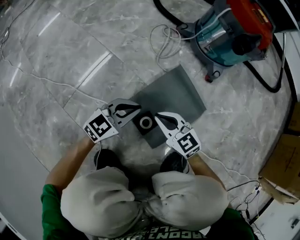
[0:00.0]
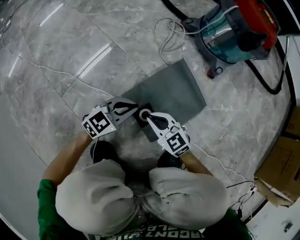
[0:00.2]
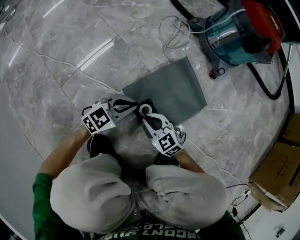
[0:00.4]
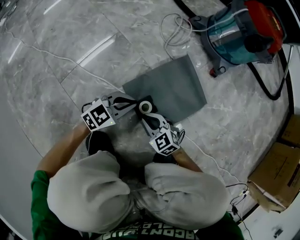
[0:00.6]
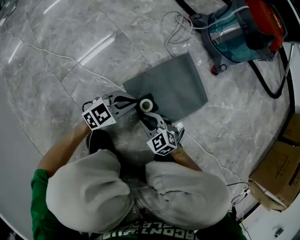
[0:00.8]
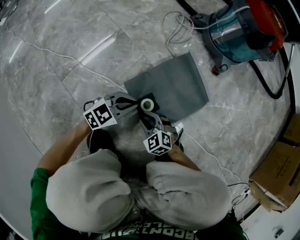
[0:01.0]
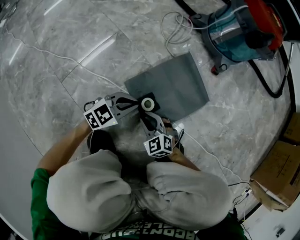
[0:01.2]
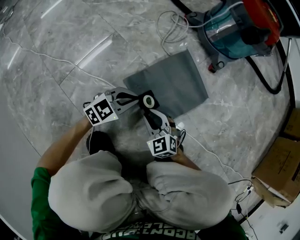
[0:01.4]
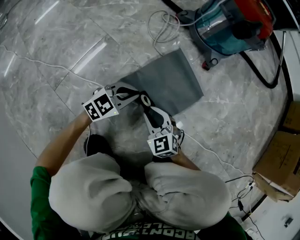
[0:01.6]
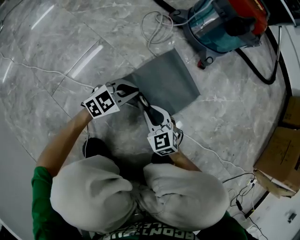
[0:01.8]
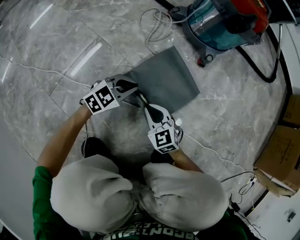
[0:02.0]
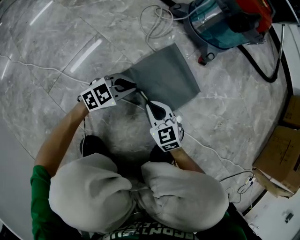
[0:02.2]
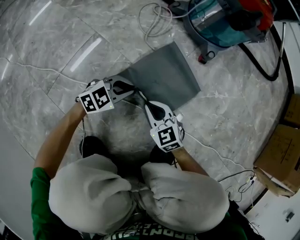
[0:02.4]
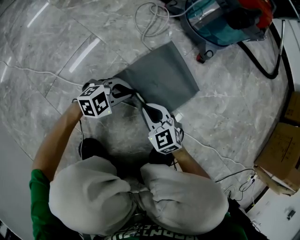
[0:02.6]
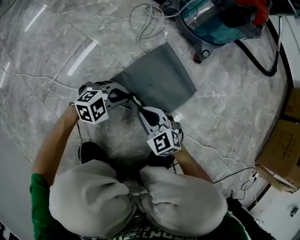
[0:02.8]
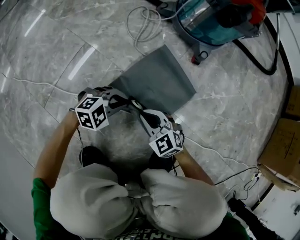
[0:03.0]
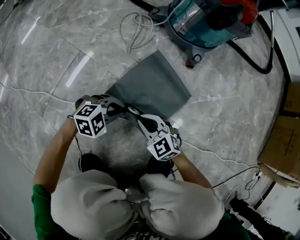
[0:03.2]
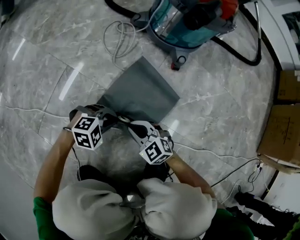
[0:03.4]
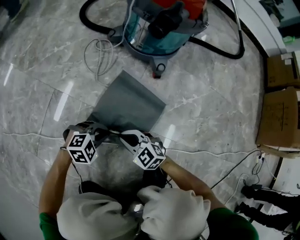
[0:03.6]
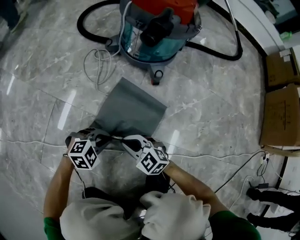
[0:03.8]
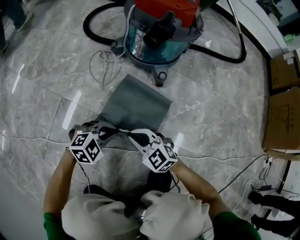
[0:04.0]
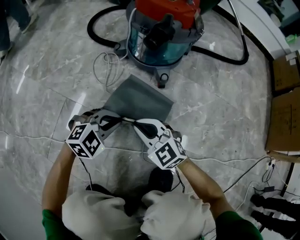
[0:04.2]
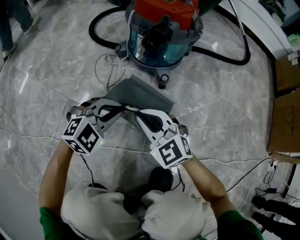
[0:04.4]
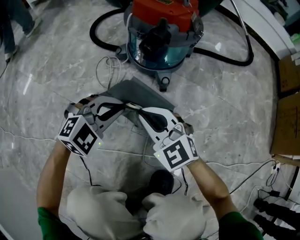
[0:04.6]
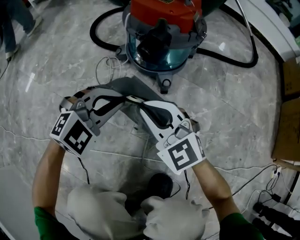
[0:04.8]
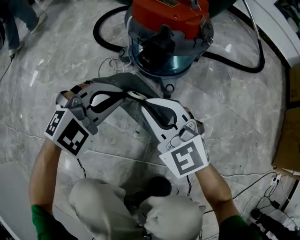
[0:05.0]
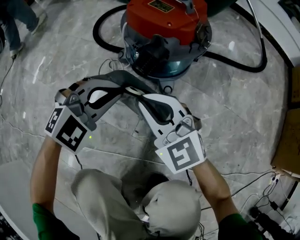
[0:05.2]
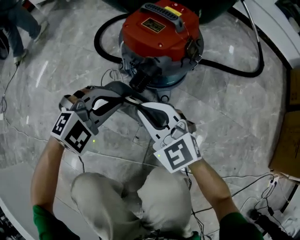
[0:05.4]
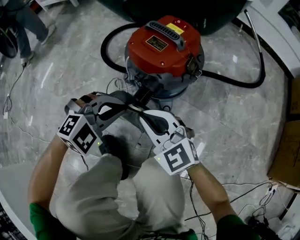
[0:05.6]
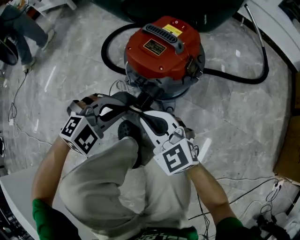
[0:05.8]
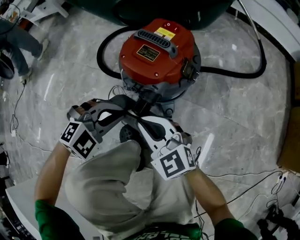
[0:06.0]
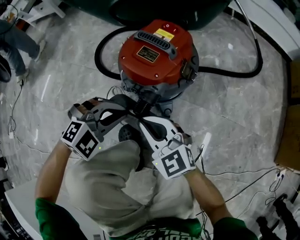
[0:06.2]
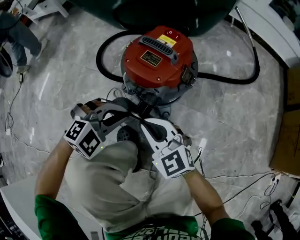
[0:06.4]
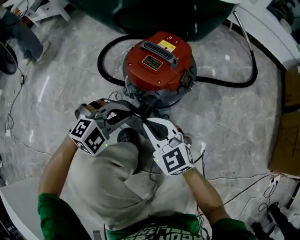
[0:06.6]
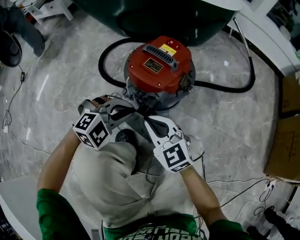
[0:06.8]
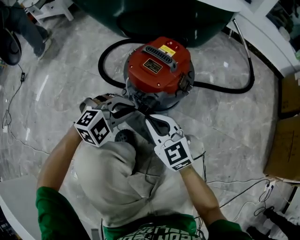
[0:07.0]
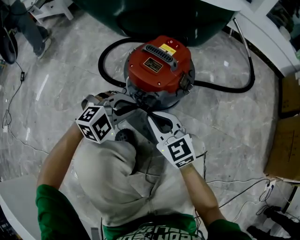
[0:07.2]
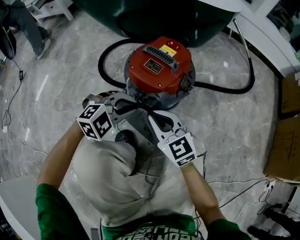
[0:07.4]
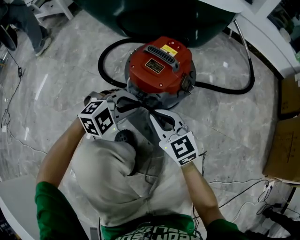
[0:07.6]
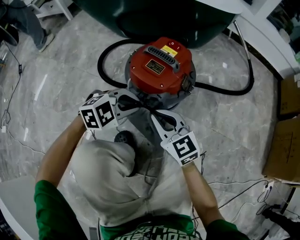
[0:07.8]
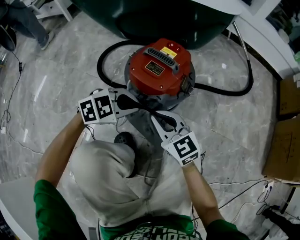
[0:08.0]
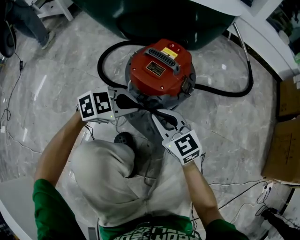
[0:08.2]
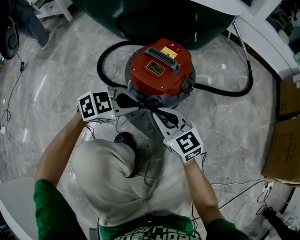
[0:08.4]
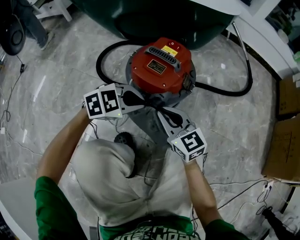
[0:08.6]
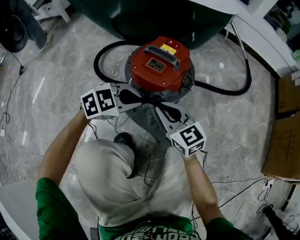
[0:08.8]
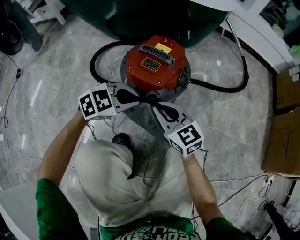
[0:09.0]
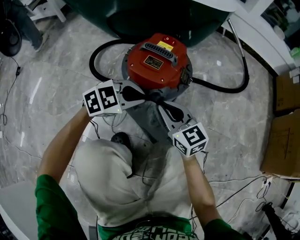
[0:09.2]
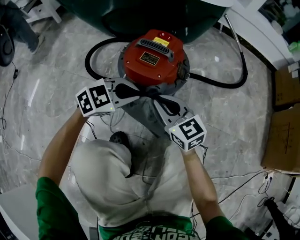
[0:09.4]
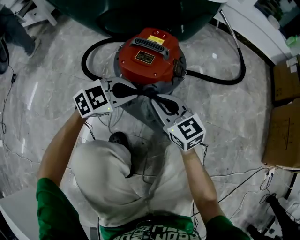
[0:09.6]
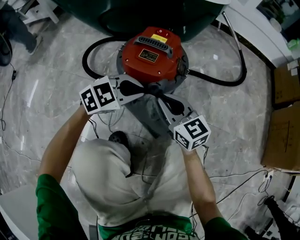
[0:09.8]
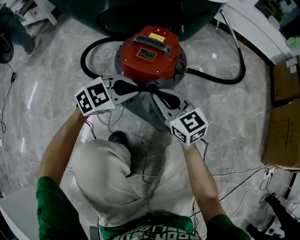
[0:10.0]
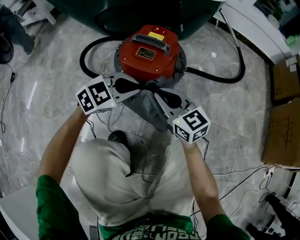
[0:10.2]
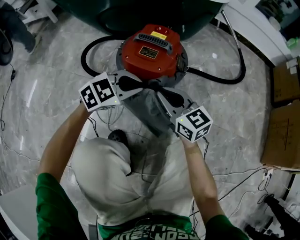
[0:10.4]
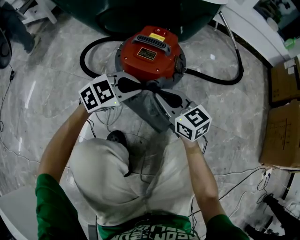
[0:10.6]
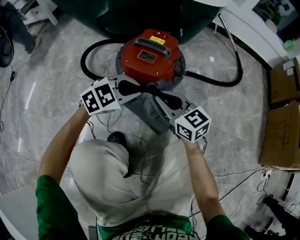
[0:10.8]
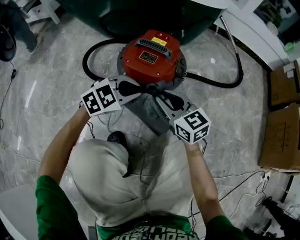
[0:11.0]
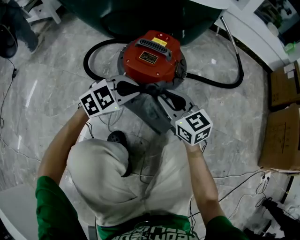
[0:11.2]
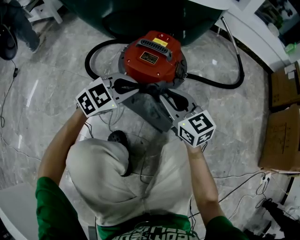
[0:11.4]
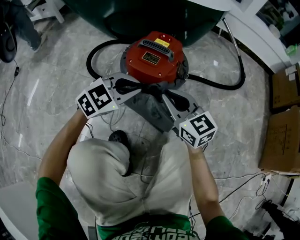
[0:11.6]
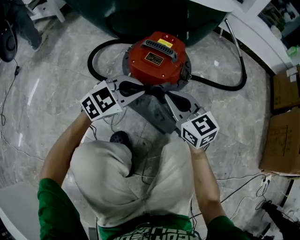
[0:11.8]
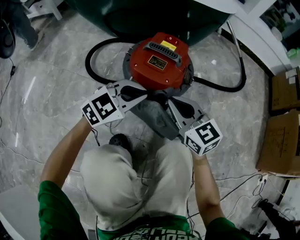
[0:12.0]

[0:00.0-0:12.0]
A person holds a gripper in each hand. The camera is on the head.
0:00.0 to 0:01.6: Both grippers move downward, about 5 cm. The right gripper changes its angle by roughly 20 degrees.
0:01.6 to 0:03.0: The left gripper turns by some 30 degrees.
0:03.0 to 0:04.4: The grippers both shift upward by about 15 cm. The right gripper rotates roughly 20 degrees.
0:04.4 to 0:06.0: Both grippers travel together forward and upward, roughly 20 cm.
0:06.0 to 0:07.6: There are only small adjustments of the grippers.
0:09.0 to 0:12.0: The grippers make only small movements.

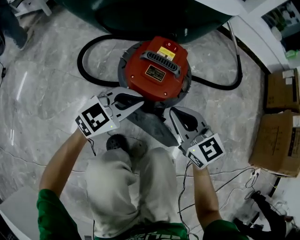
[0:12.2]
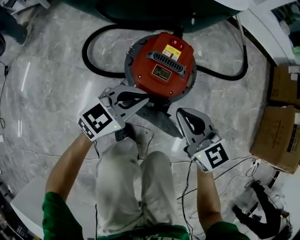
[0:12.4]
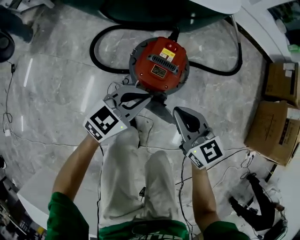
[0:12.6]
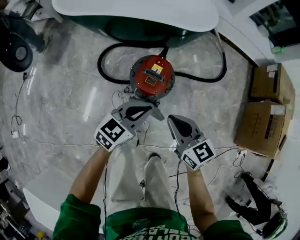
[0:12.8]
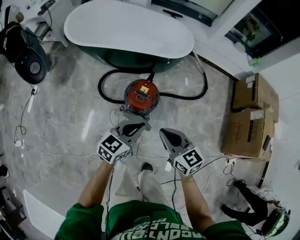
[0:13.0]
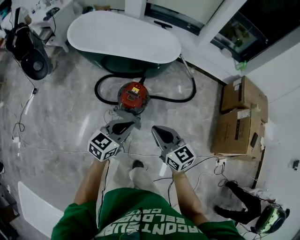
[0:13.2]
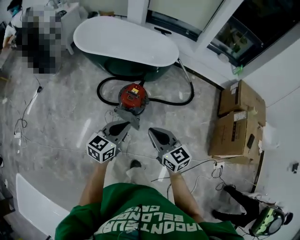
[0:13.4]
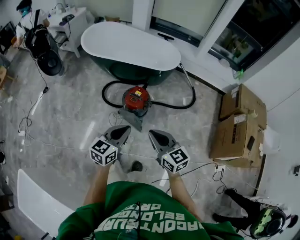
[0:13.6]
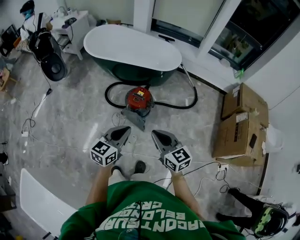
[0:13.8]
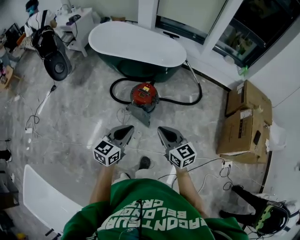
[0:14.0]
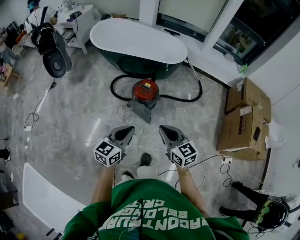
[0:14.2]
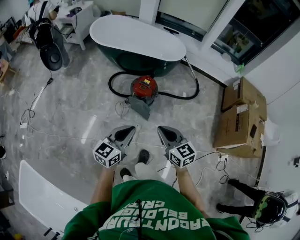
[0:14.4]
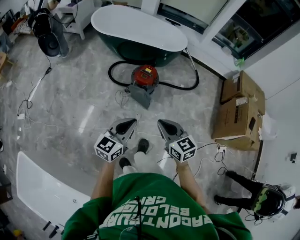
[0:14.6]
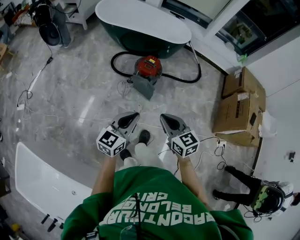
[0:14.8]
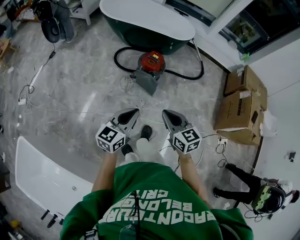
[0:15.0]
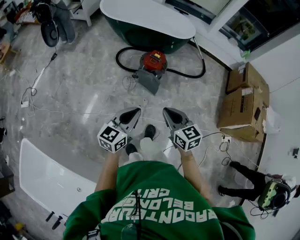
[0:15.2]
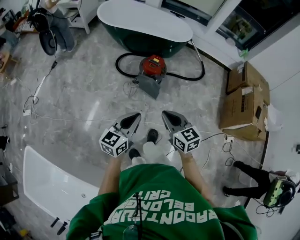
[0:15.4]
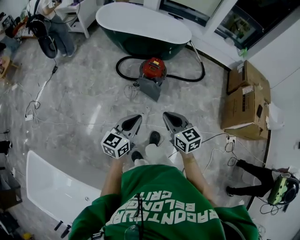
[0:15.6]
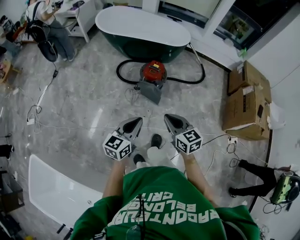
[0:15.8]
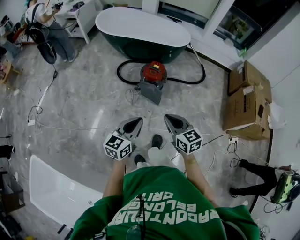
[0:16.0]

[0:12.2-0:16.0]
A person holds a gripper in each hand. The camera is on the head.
0:12.2 to 0:13.4: The two grippers go about 70 cm upward and backward. The left gripper changes its angle by about 40 degrees.
0:13.4 to 0:14.8: Both grippers travel together backward and to the left, about 25 cm.
0:14.8 to 0:16.0: There are only small adjustments of the grippers.

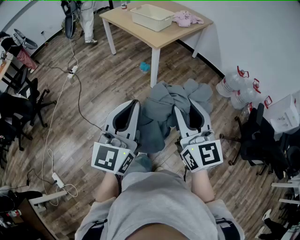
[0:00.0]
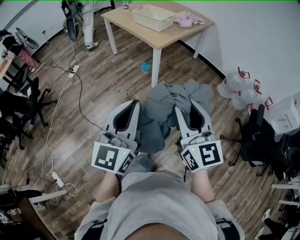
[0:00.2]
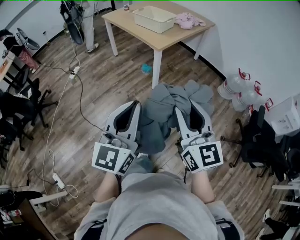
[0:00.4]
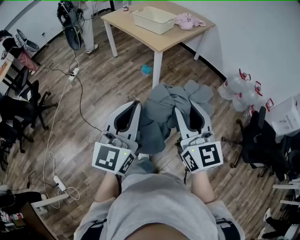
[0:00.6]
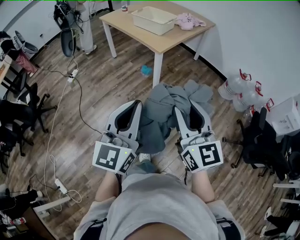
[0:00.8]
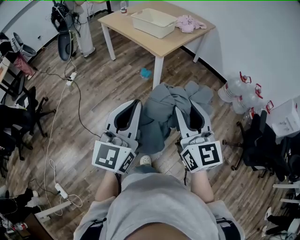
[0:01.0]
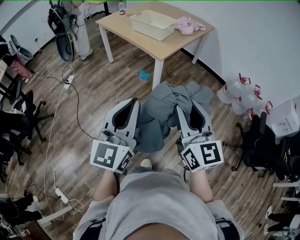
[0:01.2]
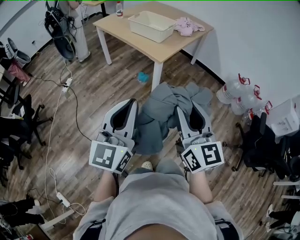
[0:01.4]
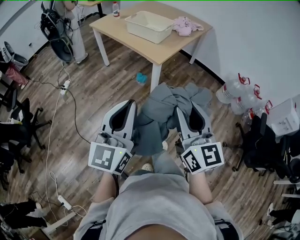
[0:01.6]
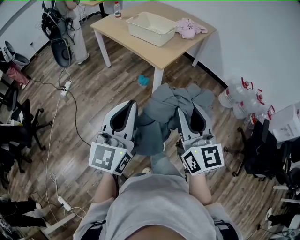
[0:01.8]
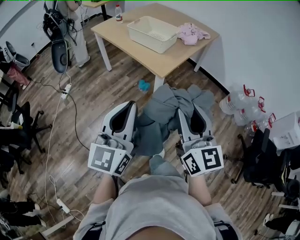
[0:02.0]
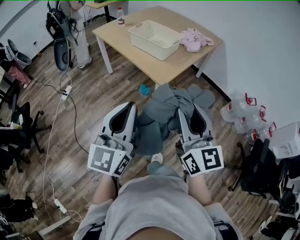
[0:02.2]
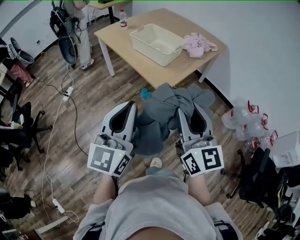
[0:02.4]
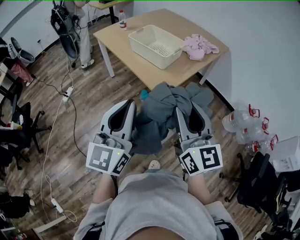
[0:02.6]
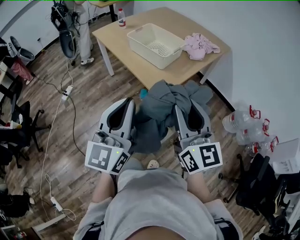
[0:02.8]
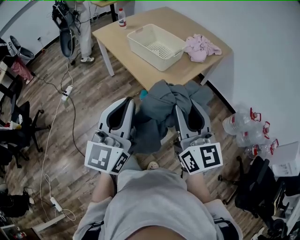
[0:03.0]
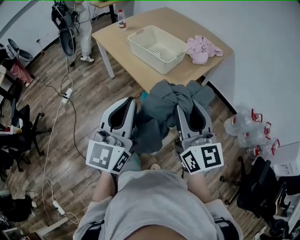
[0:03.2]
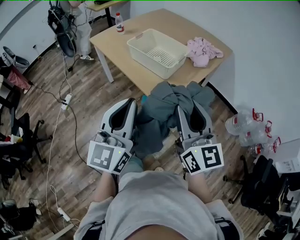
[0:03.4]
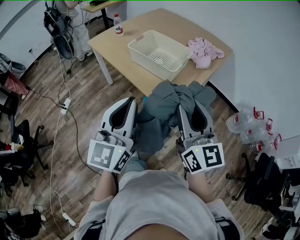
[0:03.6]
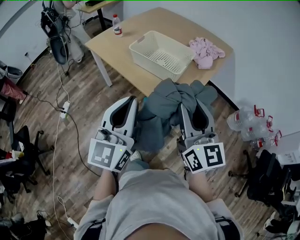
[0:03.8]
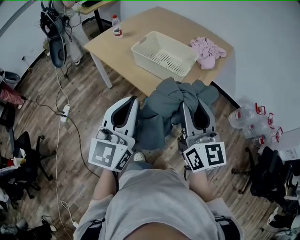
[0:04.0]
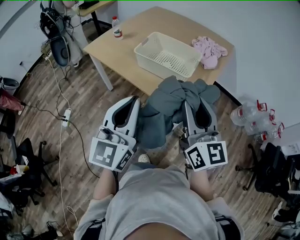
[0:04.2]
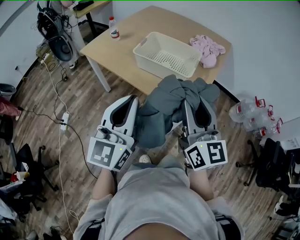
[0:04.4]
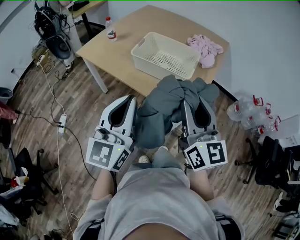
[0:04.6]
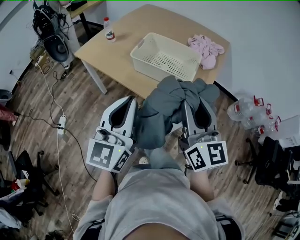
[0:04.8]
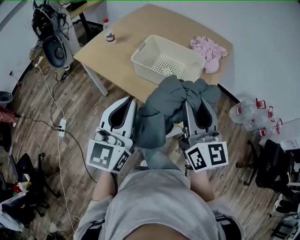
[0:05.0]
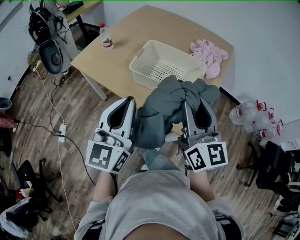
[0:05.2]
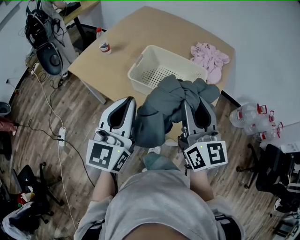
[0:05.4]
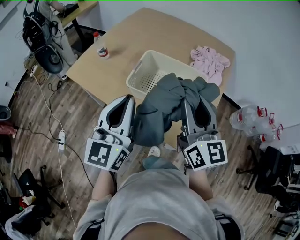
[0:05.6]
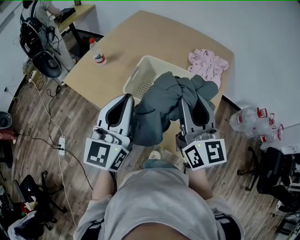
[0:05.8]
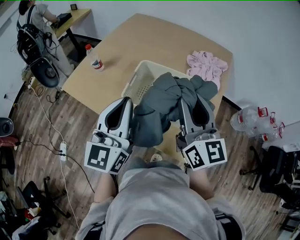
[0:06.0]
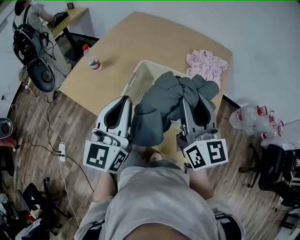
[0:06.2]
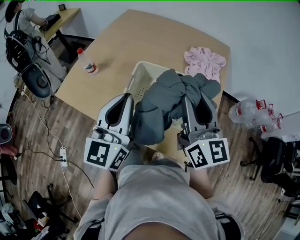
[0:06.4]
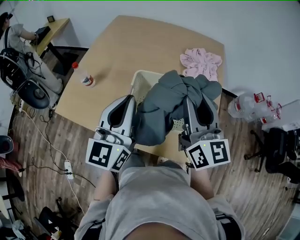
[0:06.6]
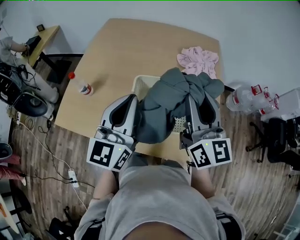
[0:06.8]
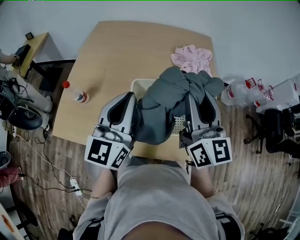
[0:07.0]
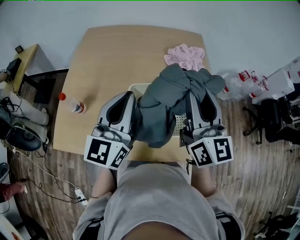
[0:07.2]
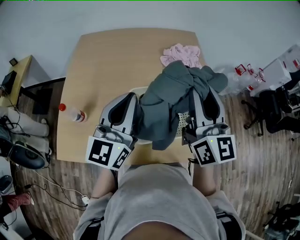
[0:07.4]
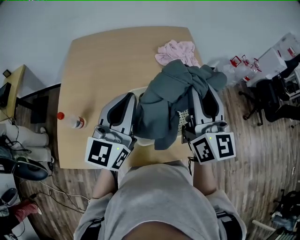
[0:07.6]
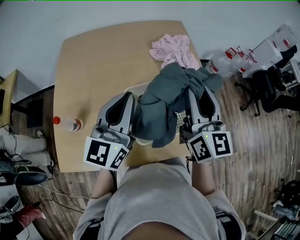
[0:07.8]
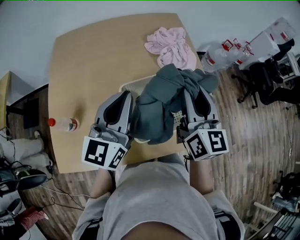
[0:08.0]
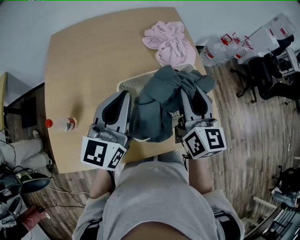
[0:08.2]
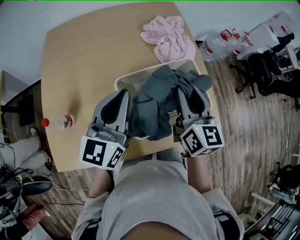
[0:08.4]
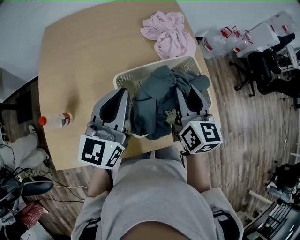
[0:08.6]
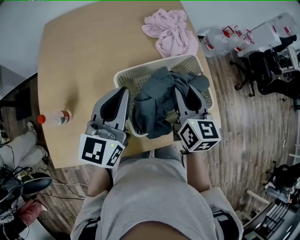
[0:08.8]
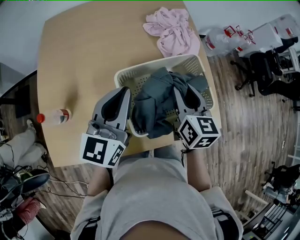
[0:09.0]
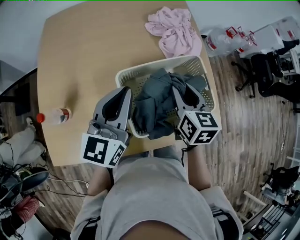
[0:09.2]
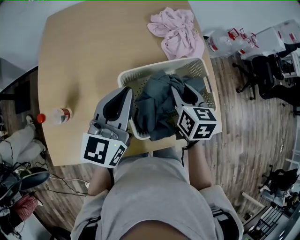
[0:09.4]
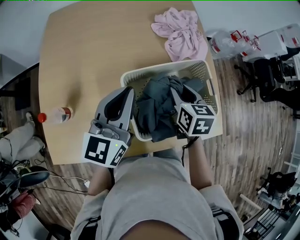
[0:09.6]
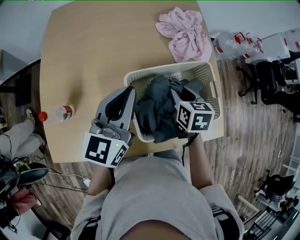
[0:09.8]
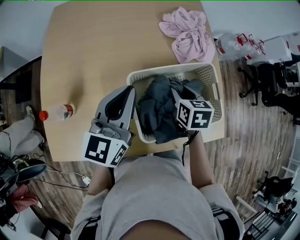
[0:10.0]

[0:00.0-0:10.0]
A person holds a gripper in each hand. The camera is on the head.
0:00.0 to 0:01.4: The two grippers go some 15 cm forward and to the left.
0:01.4 to 0:02.8: Both grippers move forward, some 30 cm.
0:02.8 to 0:04.2: The two grippers go approximately 25 cm forward and to the left.
0:04.2 to 0:05.8: The grippers both shift forward by approximately 25 cm.
0:05.8 to 0:07.2: The left gripper changes place by some 20 cm, and rotates approximately 30 degrees. The right gripper ends up some 15 cm from where it was, and changes its angle by some 30 degrees.
0:07.2 to 0:08.6: The right gripper moves downward, approximately 15 cm, and swivels some 30 degrees, while the left gripper moves downward, roughly 5 cm.
0:08.6 to 0:10.0: The right gripper moves downward, roughly 15 cm, and angles its fingers downward, by about 30 degrees; the left gripper changes place by some 5 cm.
